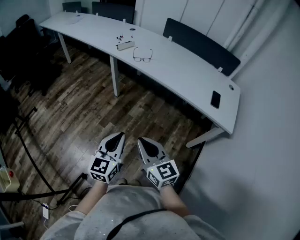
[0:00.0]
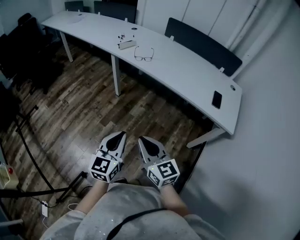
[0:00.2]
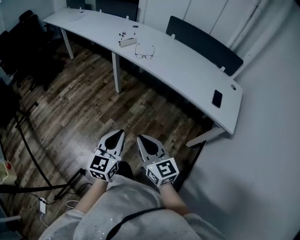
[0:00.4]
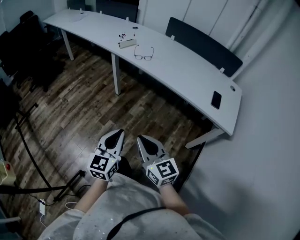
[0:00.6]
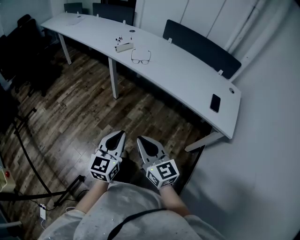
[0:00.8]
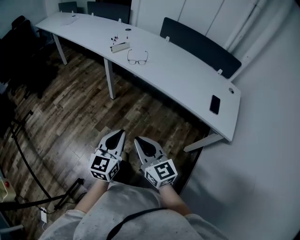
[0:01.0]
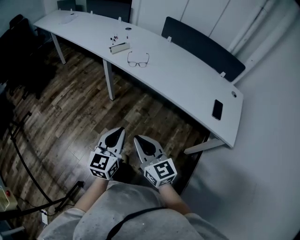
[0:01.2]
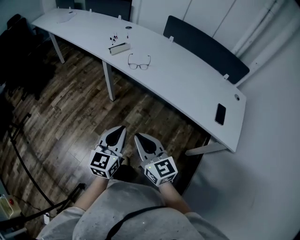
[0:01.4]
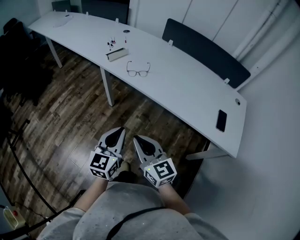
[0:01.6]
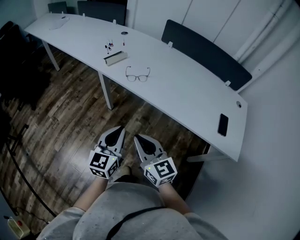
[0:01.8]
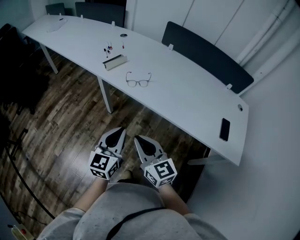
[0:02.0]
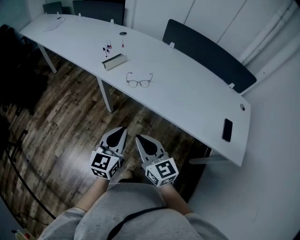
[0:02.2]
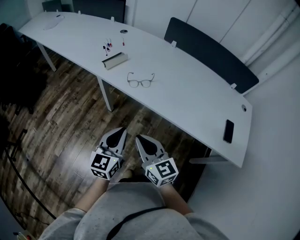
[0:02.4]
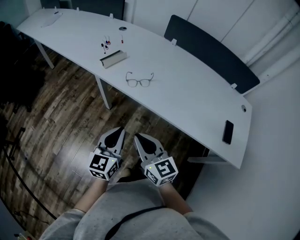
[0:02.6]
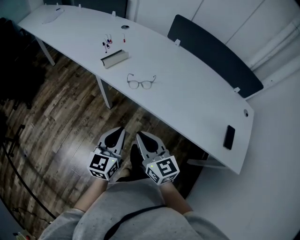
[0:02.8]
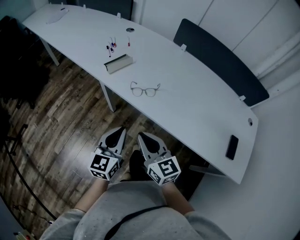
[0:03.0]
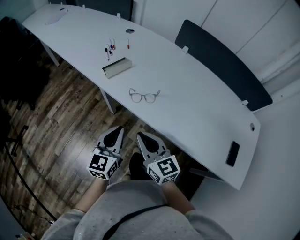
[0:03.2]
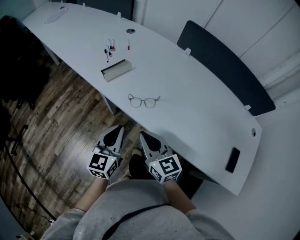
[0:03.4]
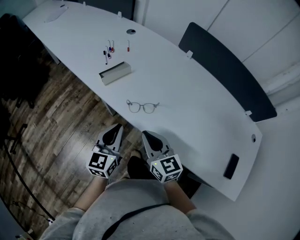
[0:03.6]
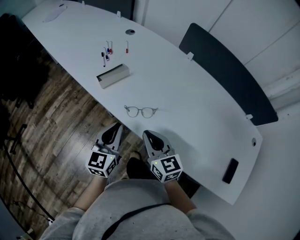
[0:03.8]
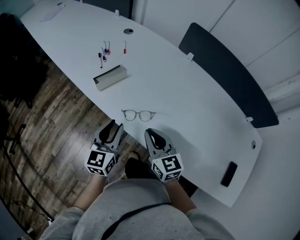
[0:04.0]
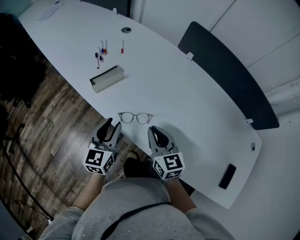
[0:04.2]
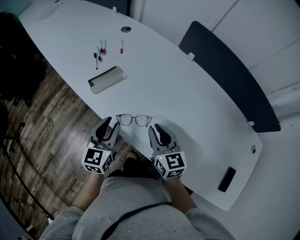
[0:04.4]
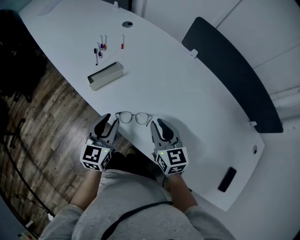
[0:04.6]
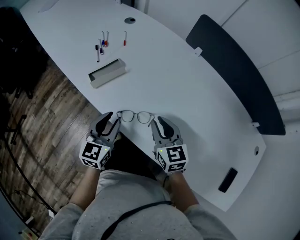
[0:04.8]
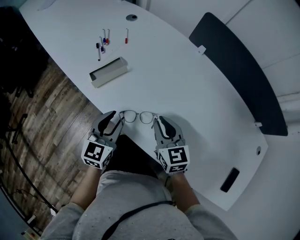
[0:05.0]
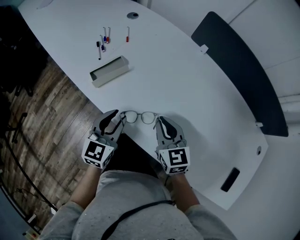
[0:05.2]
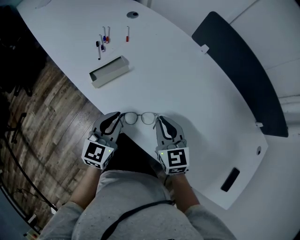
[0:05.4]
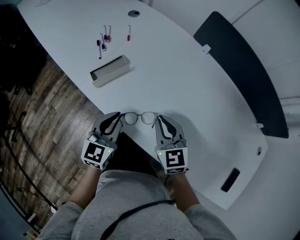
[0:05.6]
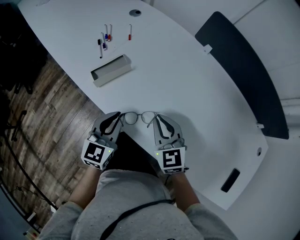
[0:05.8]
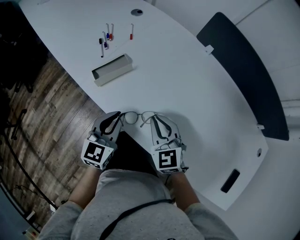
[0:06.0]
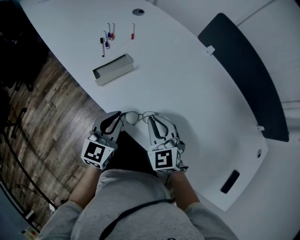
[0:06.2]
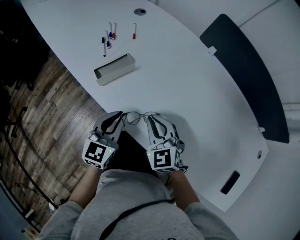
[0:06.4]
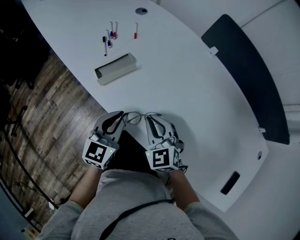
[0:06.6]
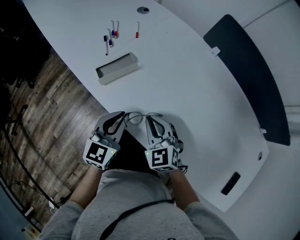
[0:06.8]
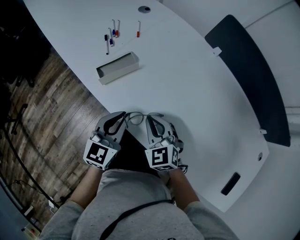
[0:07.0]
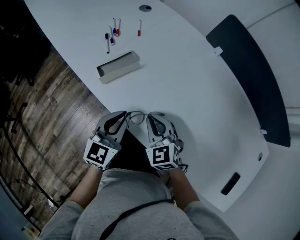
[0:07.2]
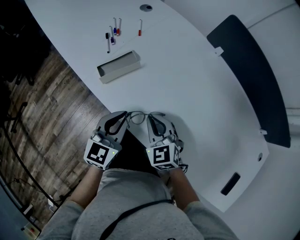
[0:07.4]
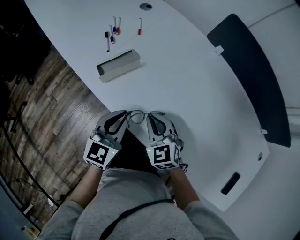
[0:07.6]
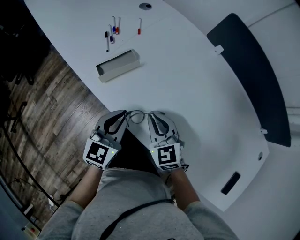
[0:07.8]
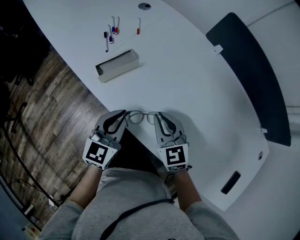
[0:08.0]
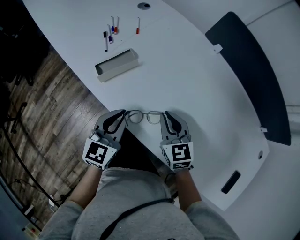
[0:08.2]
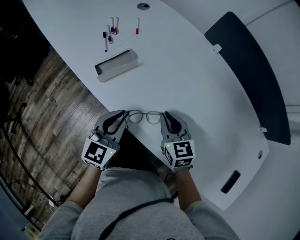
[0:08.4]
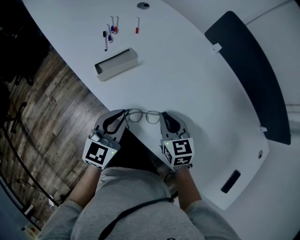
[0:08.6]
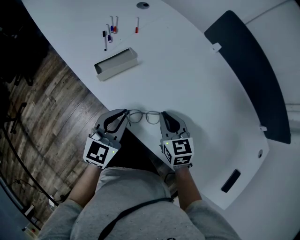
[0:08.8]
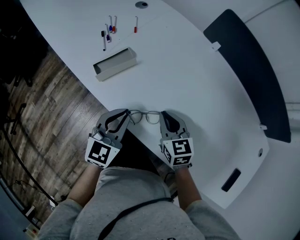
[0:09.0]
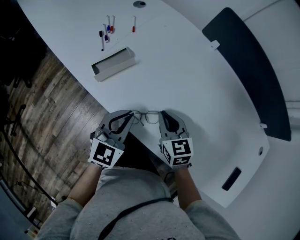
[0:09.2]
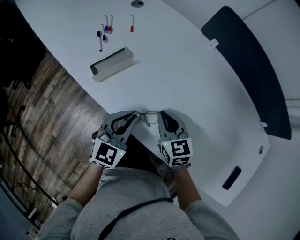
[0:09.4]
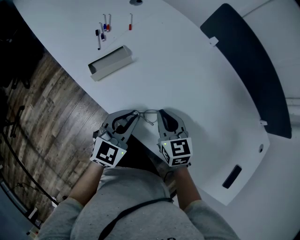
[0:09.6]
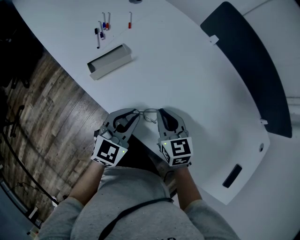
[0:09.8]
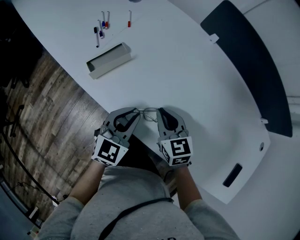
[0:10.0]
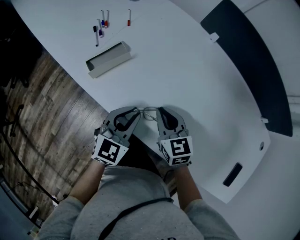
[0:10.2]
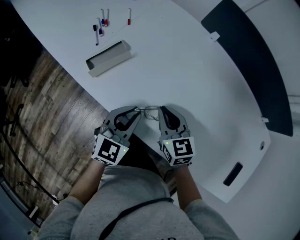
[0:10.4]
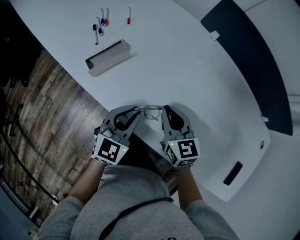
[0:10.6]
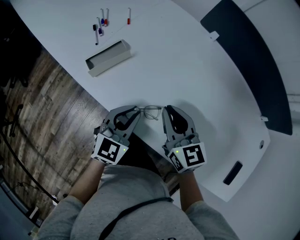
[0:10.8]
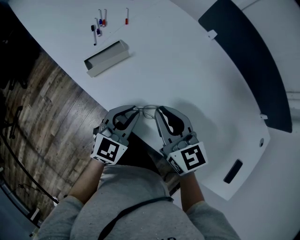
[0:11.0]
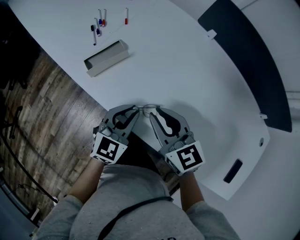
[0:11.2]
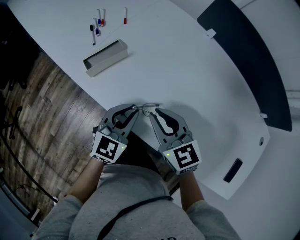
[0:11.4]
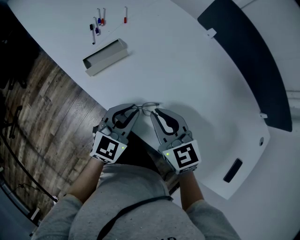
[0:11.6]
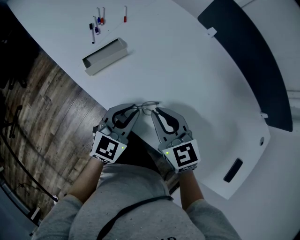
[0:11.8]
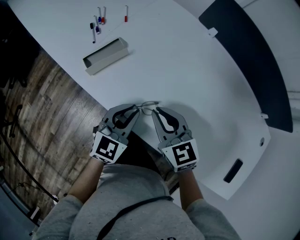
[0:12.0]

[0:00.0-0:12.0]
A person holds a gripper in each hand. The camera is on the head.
0:00.0 to 0:01.6: Both grippers move forward, about 25 cm.
0:01.6 to 0:03.0: Both grippers move forward, approximately 25 cm.
0:03.0 to 0:04.4: The left gripper heads forward, covering about 25 cm, and opens up; the right gripper is displaced forward and to the right by about 25 cm.
0:04.4 to 0:06.0: The left gripper closes, while the right gripper ends up some 5 cm from where it was, and rotates some 30 degrees.
0:06.0 to 0:07.6: The right gripper shifts by about 5 cm.
0:07.6 to 0:09.0: The right gripper shifts approximately 5 cm to the right, and swivels about 30 degrees.
0:09.0 to 0:10.4: The left gripper ends up roughly 5 cm from where it was.

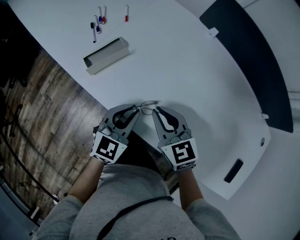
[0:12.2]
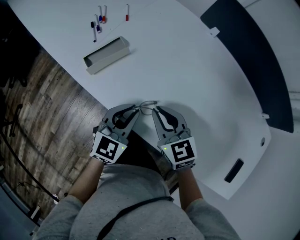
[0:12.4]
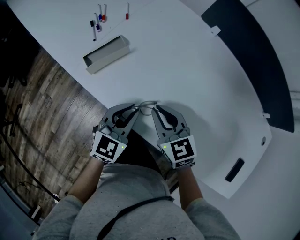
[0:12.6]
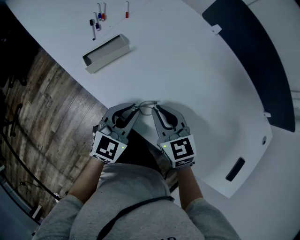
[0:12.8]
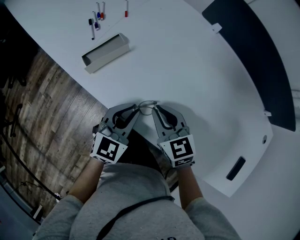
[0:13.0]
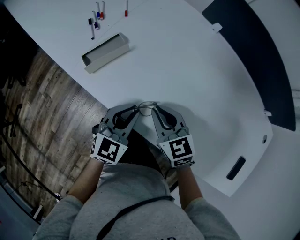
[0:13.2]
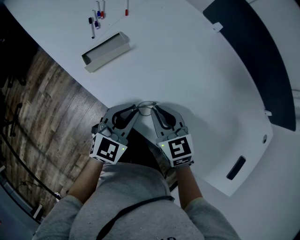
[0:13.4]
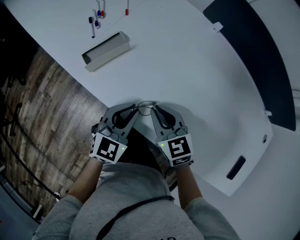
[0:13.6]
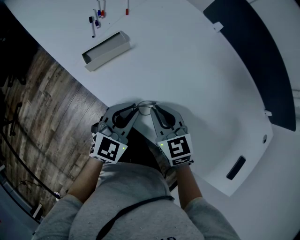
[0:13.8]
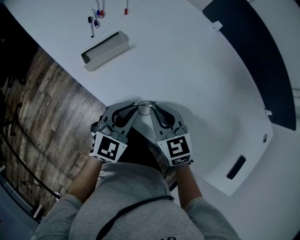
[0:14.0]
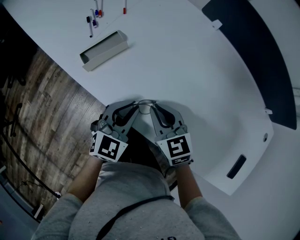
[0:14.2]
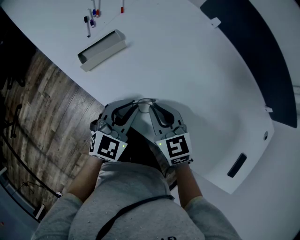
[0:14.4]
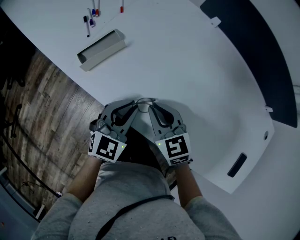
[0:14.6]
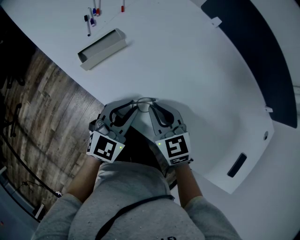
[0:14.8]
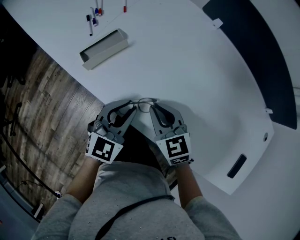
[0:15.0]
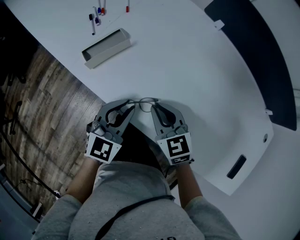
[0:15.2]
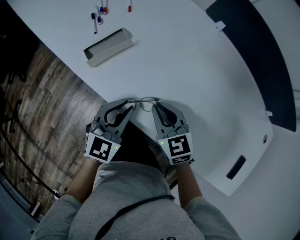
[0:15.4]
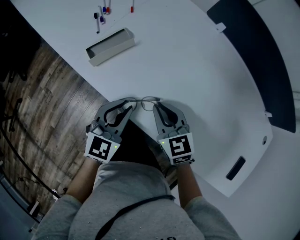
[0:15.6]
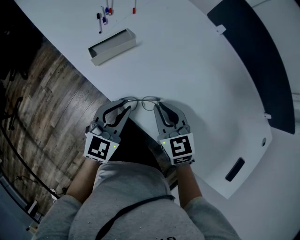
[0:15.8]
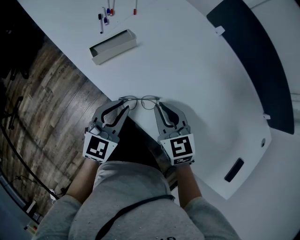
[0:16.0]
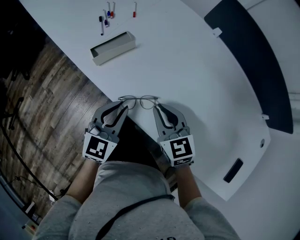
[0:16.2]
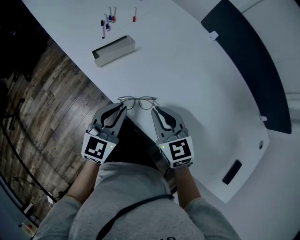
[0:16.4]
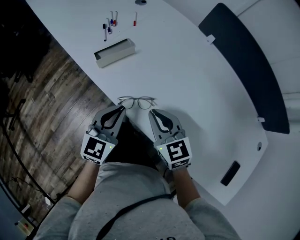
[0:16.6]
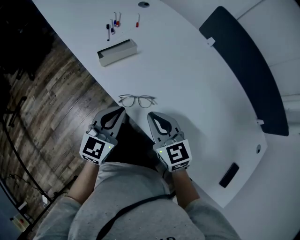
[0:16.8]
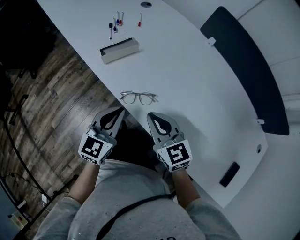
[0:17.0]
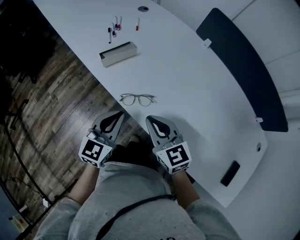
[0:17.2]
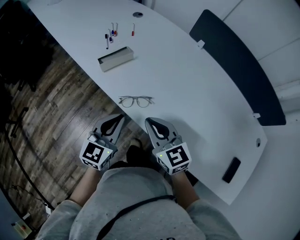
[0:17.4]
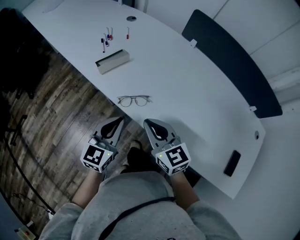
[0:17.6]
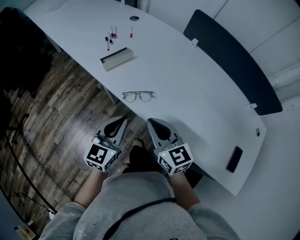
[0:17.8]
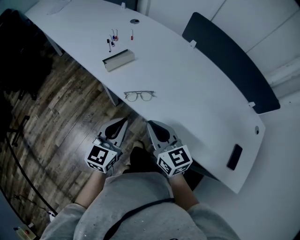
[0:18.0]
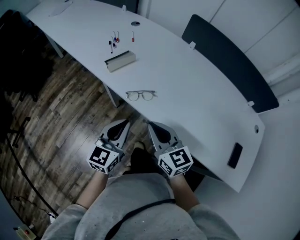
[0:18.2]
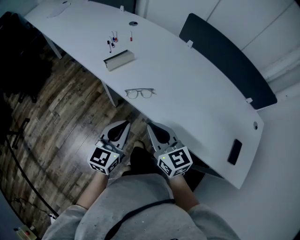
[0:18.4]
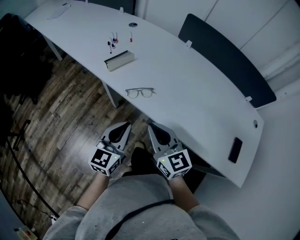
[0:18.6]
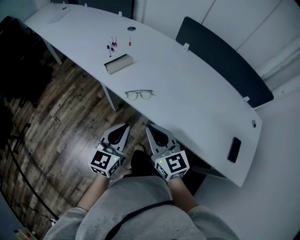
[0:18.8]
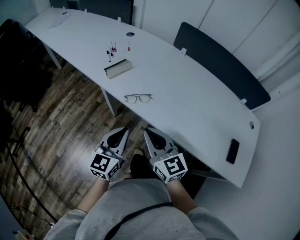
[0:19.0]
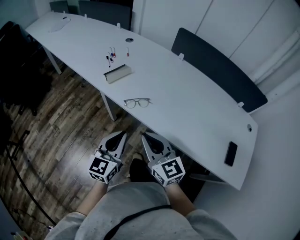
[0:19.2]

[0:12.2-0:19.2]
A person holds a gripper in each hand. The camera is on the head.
0:12.2 to 0:13.6: The grippers make only small movements.
0:13.6 to 0:15.0: Both grippers stay about where they are.
0:15.0 to 0:16.4: The left gripper changes place by approximately 5 cm. Meanwhile the right gripper travels upward by approximately 5 cm.
0:16.4 to 0:17.8: Both grippers move backward and upward, roughly 15 cm.
0:17.8 to 0:19.2: Both grippers move backward, some 10 cm.

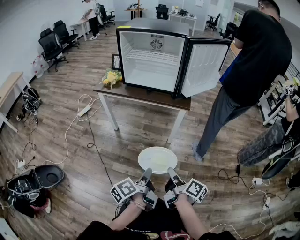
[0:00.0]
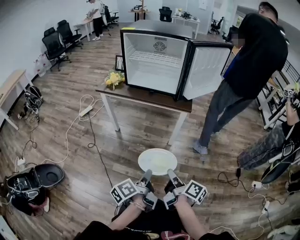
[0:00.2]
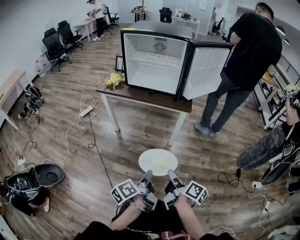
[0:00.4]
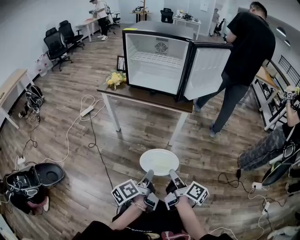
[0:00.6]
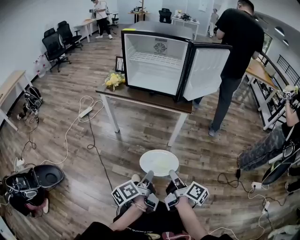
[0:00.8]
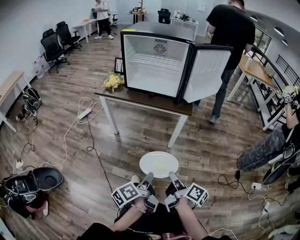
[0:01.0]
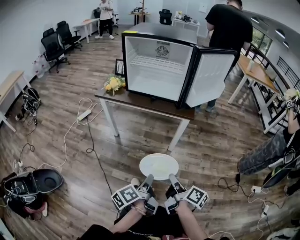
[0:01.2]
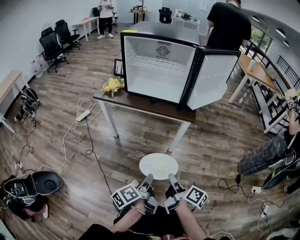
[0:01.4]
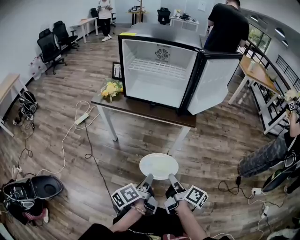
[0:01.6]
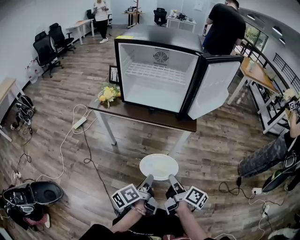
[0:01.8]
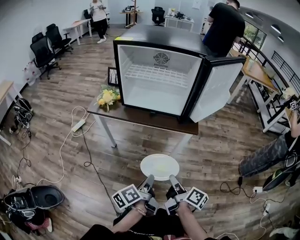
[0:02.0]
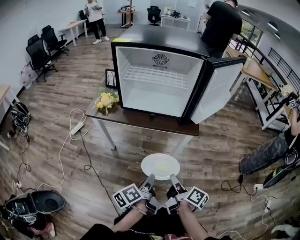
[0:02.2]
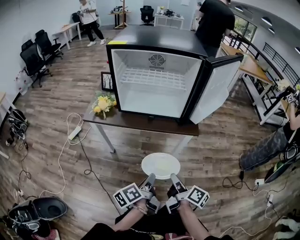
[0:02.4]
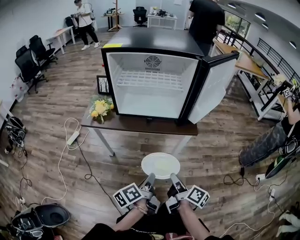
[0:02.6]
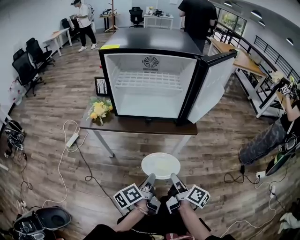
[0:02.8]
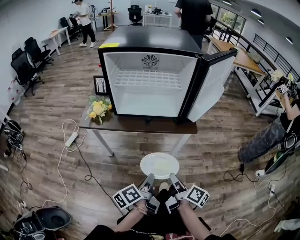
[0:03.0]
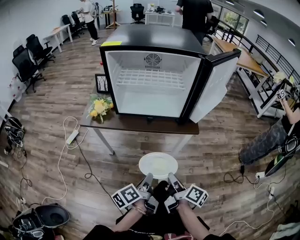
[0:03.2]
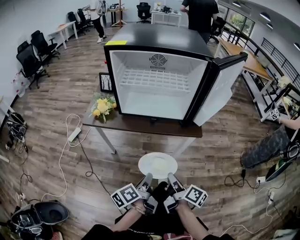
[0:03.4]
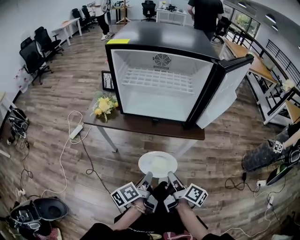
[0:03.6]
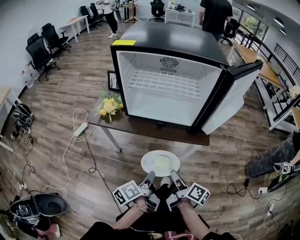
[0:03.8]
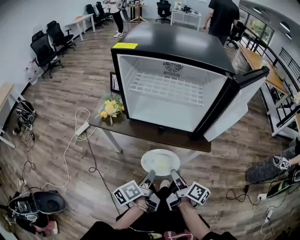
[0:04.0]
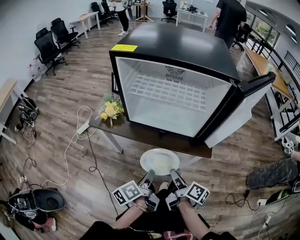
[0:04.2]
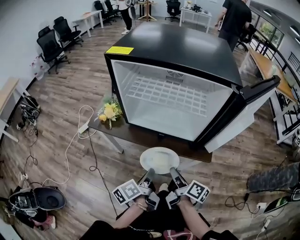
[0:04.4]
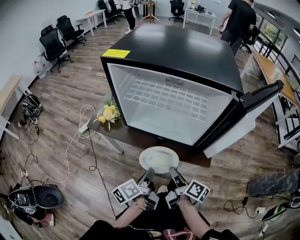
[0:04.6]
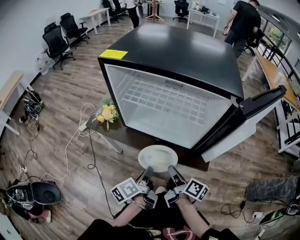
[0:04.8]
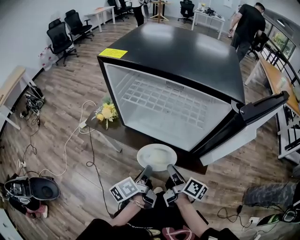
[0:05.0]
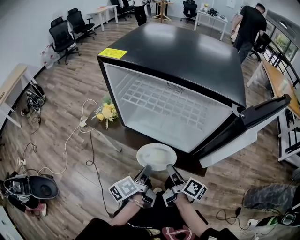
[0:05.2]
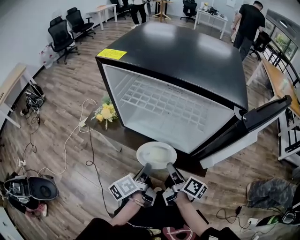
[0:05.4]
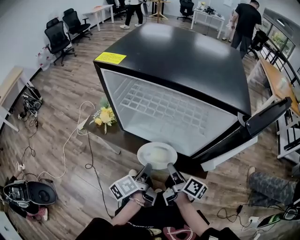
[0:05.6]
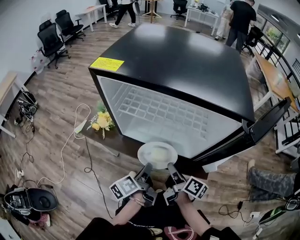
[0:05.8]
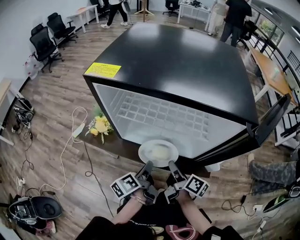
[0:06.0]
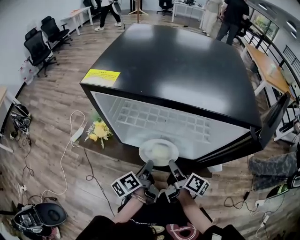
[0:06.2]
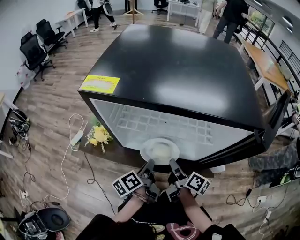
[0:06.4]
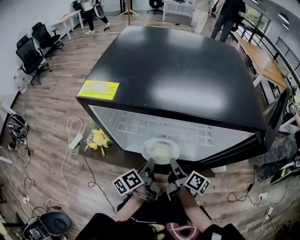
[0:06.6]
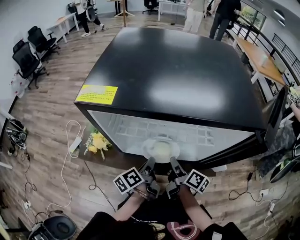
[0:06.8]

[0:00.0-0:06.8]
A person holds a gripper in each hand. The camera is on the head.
0:00.0 to 0:01.4: The grippers both shift forward by approximately 5 cm.
0:01.4 to 0:02.8: The left gripper travels forward by about 15 cm; the right gripper heads forward and to the left, covering approximately 15 cm.
0:02.8 to 0:04.0: Both grippers move forward, approximately 10 cm.
0:04.0 to 0:05.4: The right gripper goes roughly 15 cm forward; the left gripper shifts approximately 15 cm forward and to the right.
0:05.4 to 0:06.8: The grippers both shift forward by roughly 15 cm.
